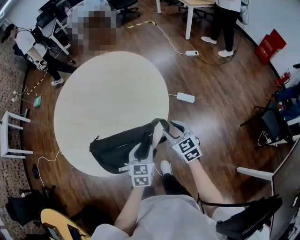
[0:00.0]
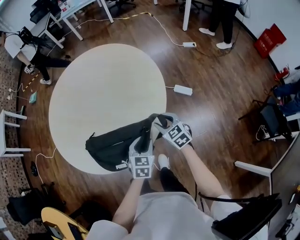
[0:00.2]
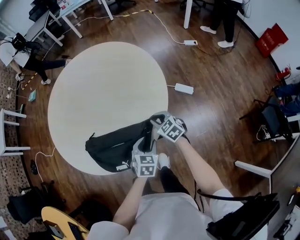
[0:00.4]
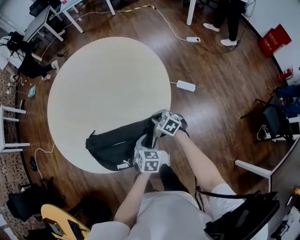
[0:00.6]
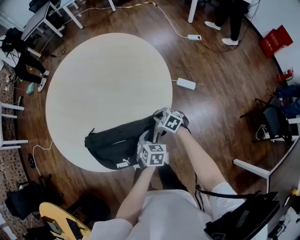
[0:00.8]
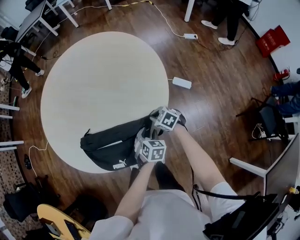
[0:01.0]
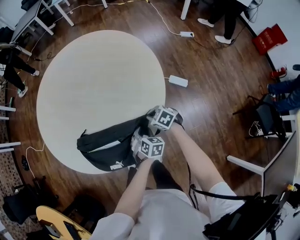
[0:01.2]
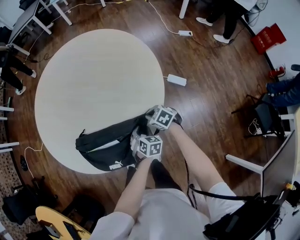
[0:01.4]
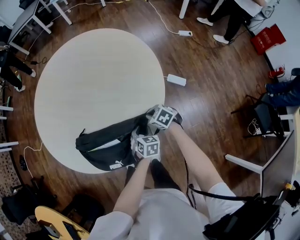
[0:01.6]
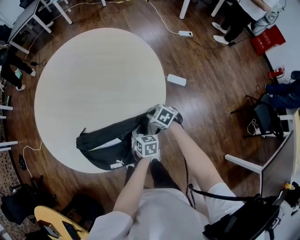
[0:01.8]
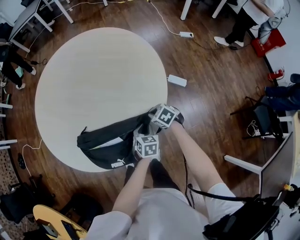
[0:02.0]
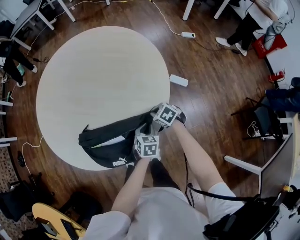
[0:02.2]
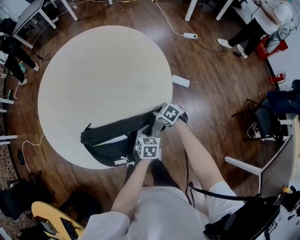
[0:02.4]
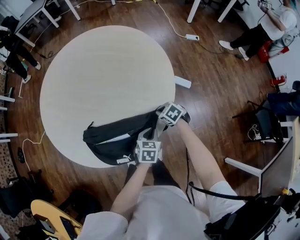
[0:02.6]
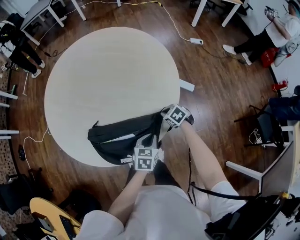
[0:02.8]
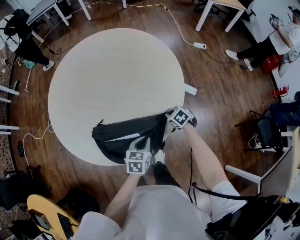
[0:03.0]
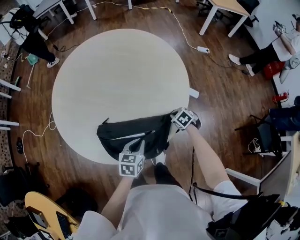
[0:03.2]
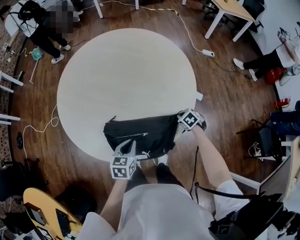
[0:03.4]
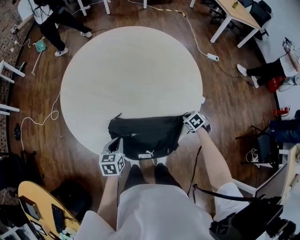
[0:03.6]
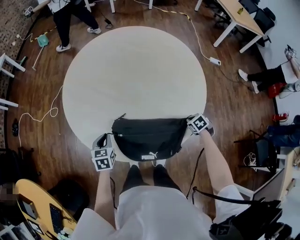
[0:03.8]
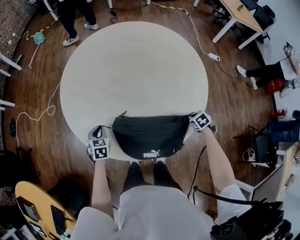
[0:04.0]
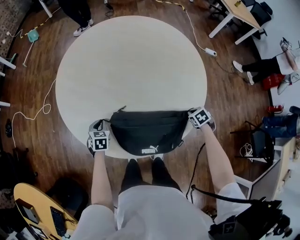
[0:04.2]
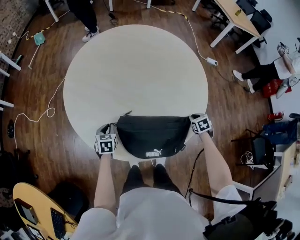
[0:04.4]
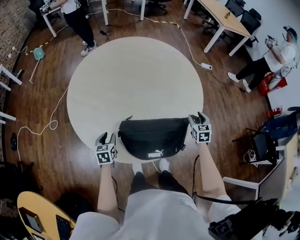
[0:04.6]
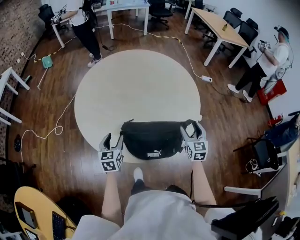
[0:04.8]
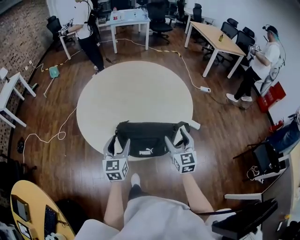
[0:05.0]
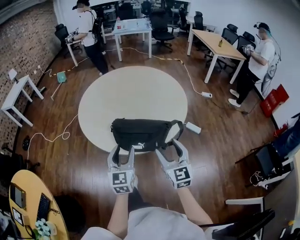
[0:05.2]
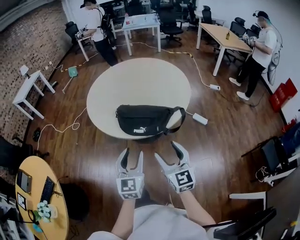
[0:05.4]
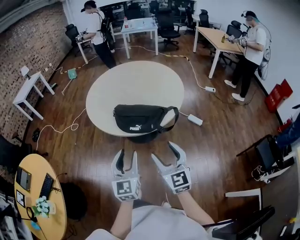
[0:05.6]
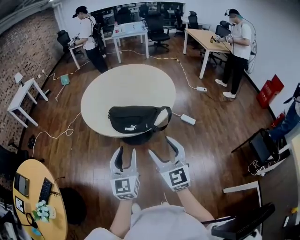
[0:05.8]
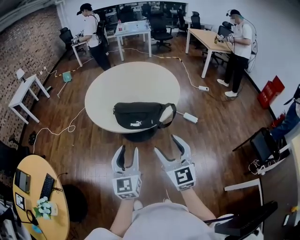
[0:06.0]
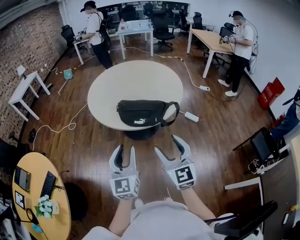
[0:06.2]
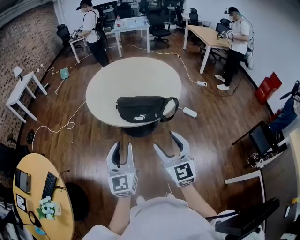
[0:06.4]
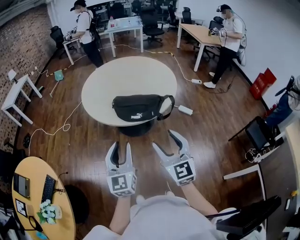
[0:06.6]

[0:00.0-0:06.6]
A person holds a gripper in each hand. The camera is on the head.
0:00.0 to 0:01.6: Both grippers move downward, roughly 15 cm. The left gripper turns by some 20 degrees. The right gripper rotates approximately 40 degrees, and closes up.
0:01.6 to 0:03.2: The left gripper travels to the left and upward by about 20 cm, rotates about 20 degrees, and closes its fingers.
0:03.2 to 0:05.0: The right gripper is displaced upward by some 30 cm, tilts its fingers about 60 degrees upward, and opens. Meanwhile the left gripper changes place by some 25 cm, swivels roughly 40 degrees, and opens.
0:05.0 to 0:06.6: Both grippers travel together backward, roughly 35 cm. The left gripper closes its fingers.

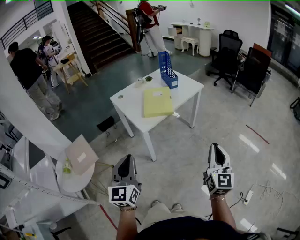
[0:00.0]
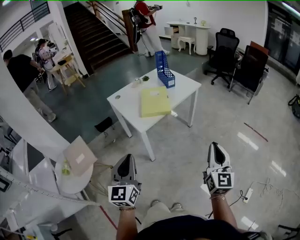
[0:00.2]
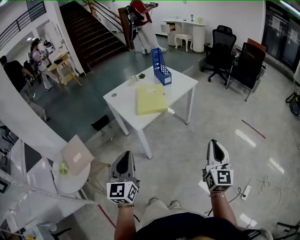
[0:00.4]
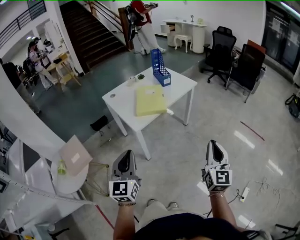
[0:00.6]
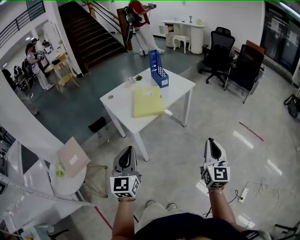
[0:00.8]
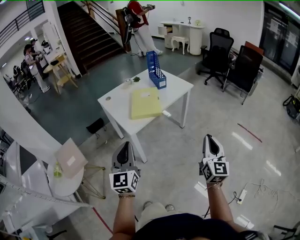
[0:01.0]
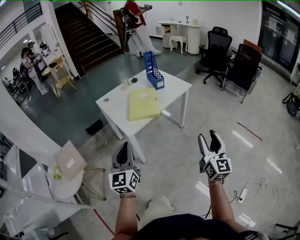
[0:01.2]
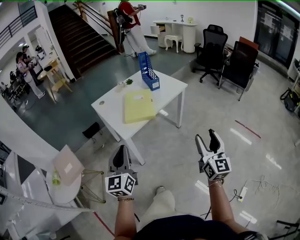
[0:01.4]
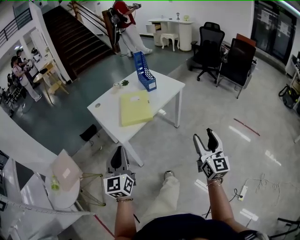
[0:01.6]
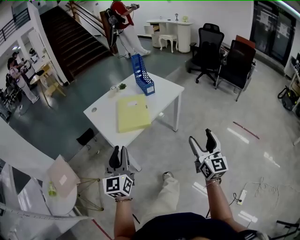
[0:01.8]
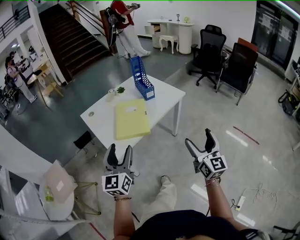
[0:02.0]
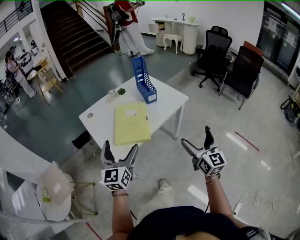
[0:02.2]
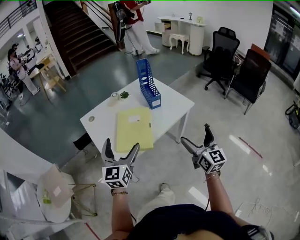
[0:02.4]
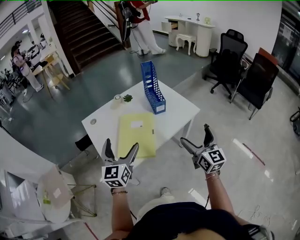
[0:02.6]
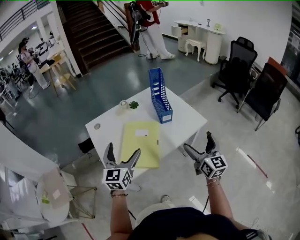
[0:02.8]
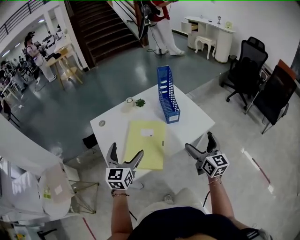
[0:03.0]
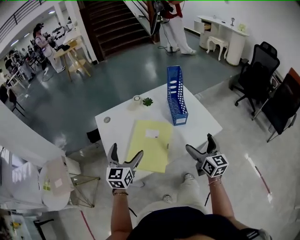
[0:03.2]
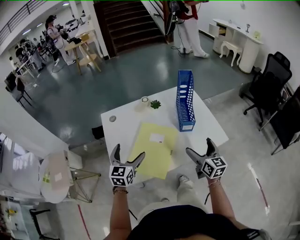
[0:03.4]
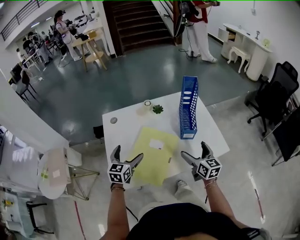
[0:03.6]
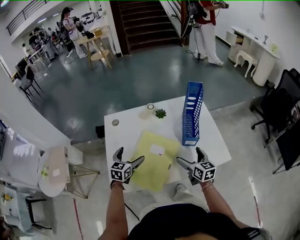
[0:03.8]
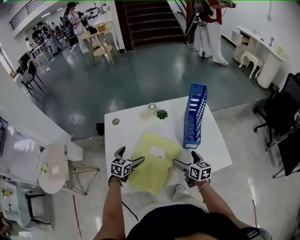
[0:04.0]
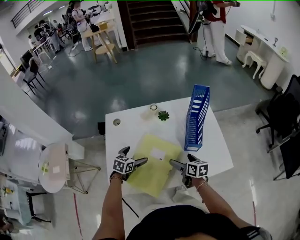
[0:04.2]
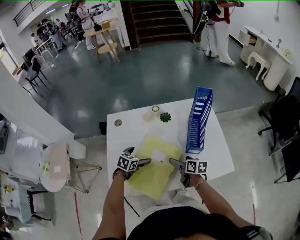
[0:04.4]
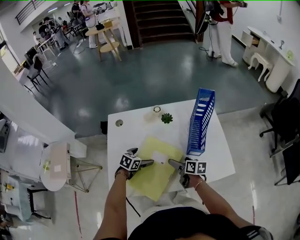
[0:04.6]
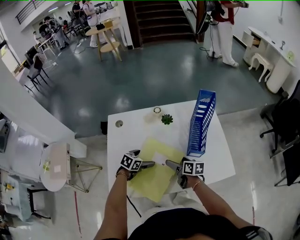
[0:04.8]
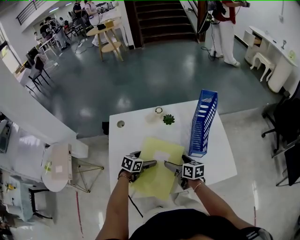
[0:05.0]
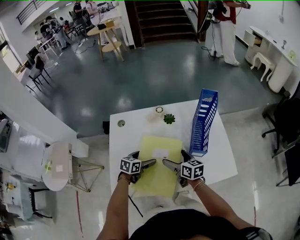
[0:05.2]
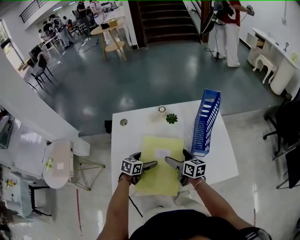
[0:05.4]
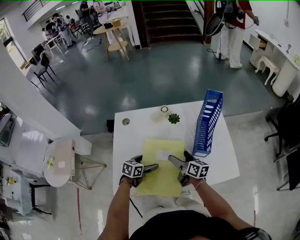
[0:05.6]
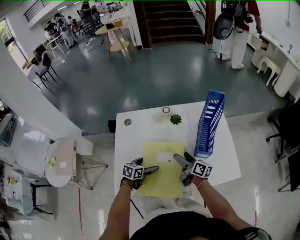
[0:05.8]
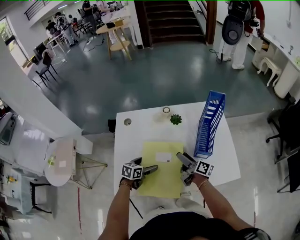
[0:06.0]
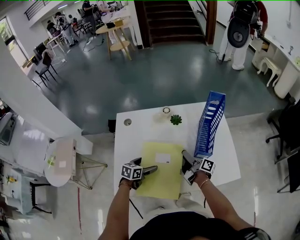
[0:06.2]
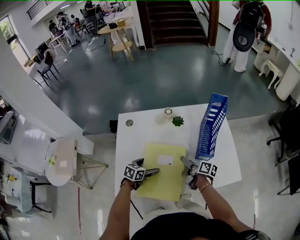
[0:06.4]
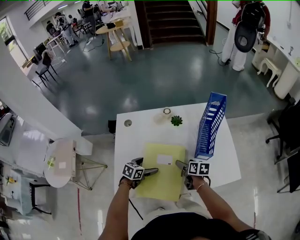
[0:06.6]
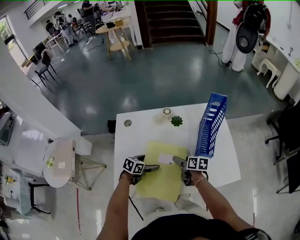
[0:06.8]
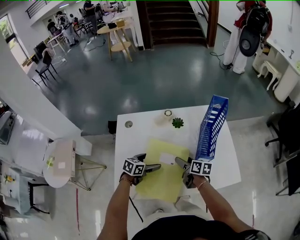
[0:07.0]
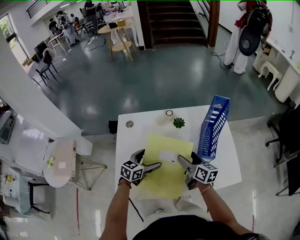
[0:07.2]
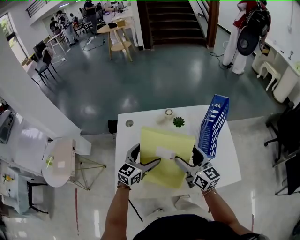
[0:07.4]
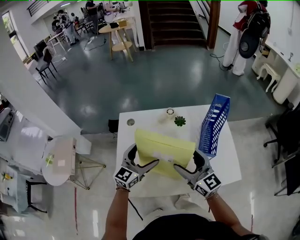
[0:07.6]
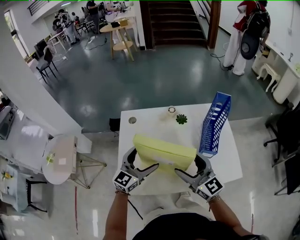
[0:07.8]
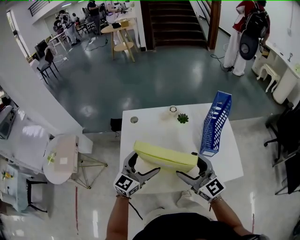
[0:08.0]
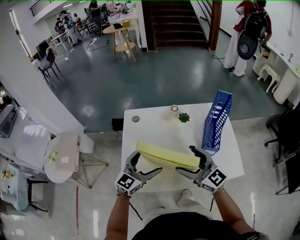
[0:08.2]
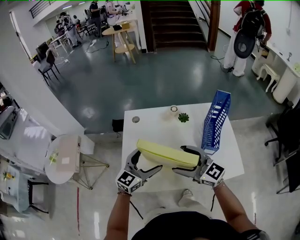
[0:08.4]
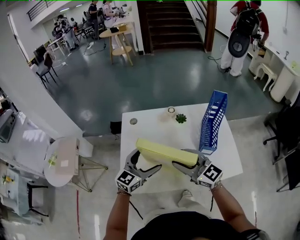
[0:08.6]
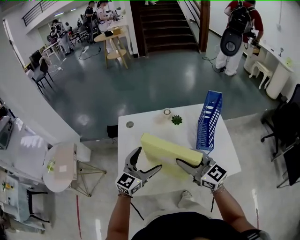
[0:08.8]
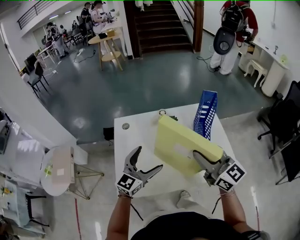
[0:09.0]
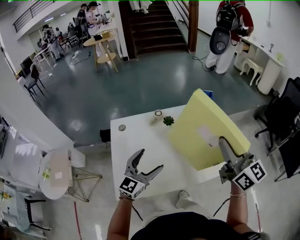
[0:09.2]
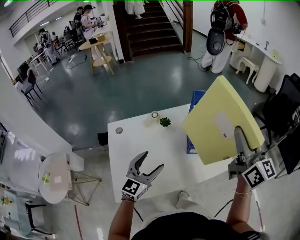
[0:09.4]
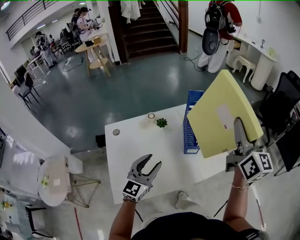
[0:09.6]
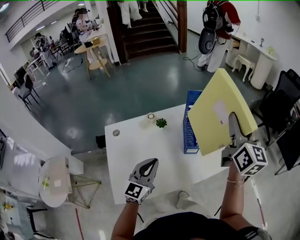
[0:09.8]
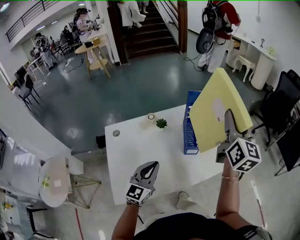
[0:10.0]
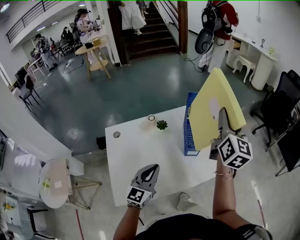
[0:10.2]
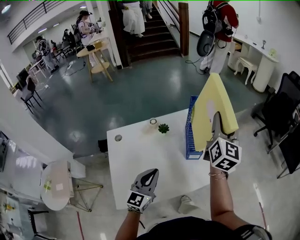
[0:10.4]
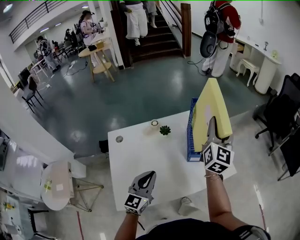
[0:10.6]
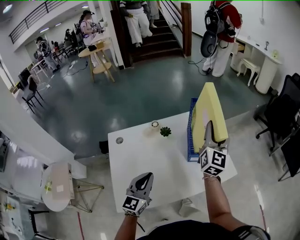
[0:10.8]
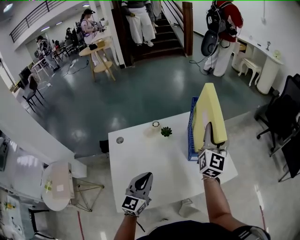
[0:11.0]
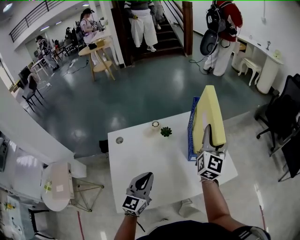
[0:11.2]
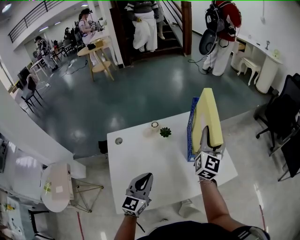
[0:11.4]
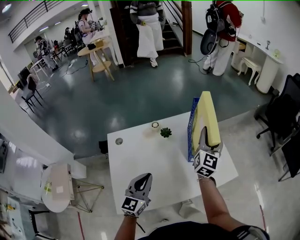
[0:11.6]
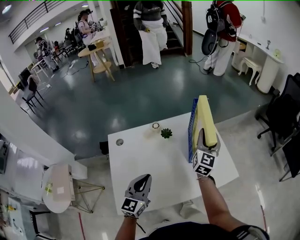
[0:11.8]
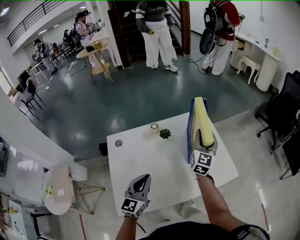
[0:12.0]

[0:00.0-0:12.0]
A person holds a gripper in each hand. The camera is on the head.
0:00.0 to 0:01.6: Both grippers move forward and to the right, roughly 15 cm. The right gripper opens its fingers.
0:01.6 to 0:03.0: The grippers both shift forward by about 40 cm. The right gripper turns by about 30 degrees, and opens its fingers, while the left gripper opens its fingers.
0:03.0 to 0:04.4: The left gripper moves downward and forward, about 30 cm, and angles its fingers downward, by approximately 40 degrees. The right gripper travels downward, forward and to the left by roughly 35 cm, and tips its fingers downward by some 30 degrees.
0:04.4 to 0:06.0: The right gripper is displaced upward by about 5 cm, and points its fingers about 30 degrees further upward.
0:06.0 to 0:07.6: Both grippers travel together upward, roughly 20 cm. The right gripper twists approximately 60 degrees counterclockwise, seen from behind. Meanwhile the left gripper points its fingers about 40 degrees further upward.
0:07.6 to 0:09.0: The left gripper is displaced backward by about 5 cm, while the right gripper moves upward and to the right, approximately 10 cm, and closes.
0:09.0 to 0:10.4: The right gripper shifts by approximately 20 cm, and turns by roughly 60 degrees. The left gripper ends up some 5 cm from where it was, and closes its fingers.
0:10.4 to 0:12.0: The left gripper shifts about 5 cm to the left. Meanwhile the right gripper is displaced downward and to the left by some 15 cm.

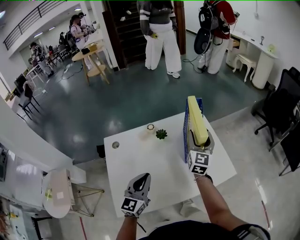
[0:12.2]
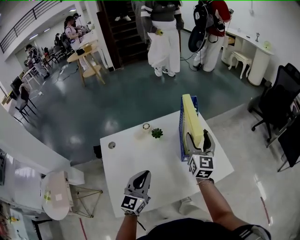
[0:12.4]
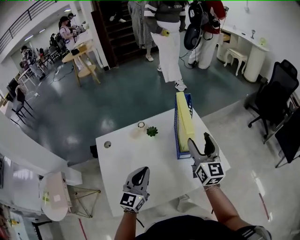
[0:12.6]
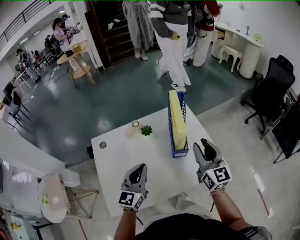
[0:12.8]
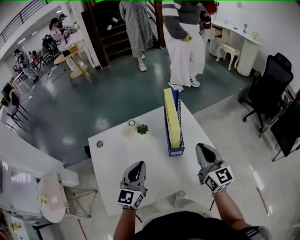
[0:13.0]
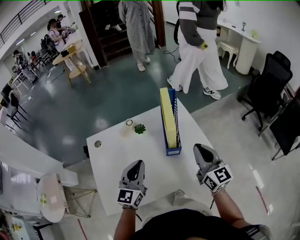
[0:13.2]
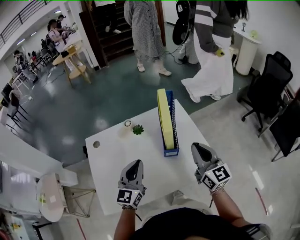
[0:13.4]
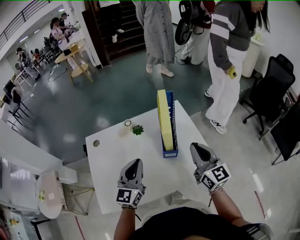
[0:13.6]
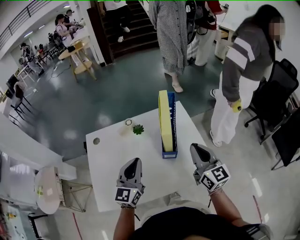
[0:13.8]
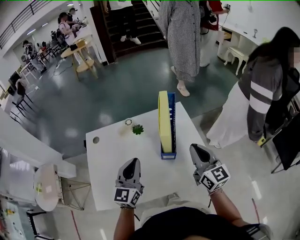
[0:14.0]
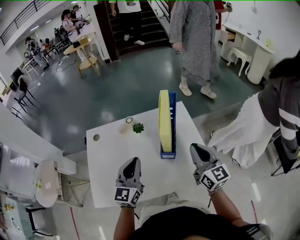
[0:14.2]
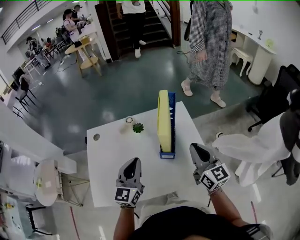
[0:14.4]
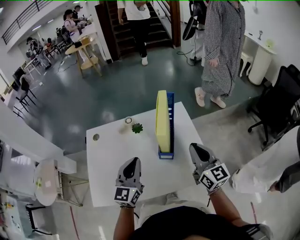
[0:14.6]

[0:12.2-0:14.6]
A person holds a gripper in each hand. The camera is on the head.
0:12.2 to 0:13.4: The left gripper heads to the right, covering roughly 10 cm. The right gripper goes roughly 15 cm backward and to the right, swivels some 30 degrees, and closes up.
0:13.4 to 0:14.6: The right gripper changes place by some 5 cm.

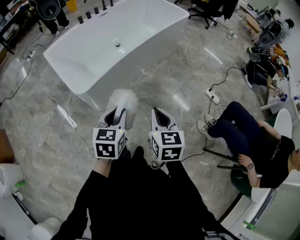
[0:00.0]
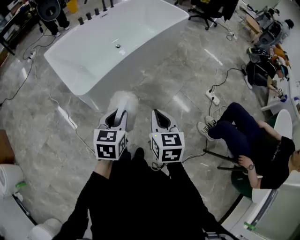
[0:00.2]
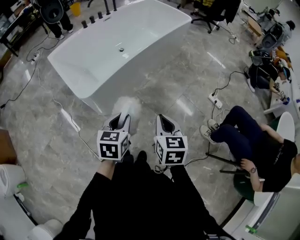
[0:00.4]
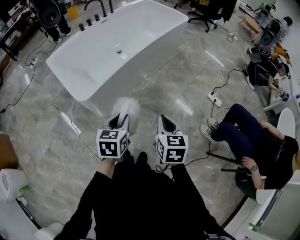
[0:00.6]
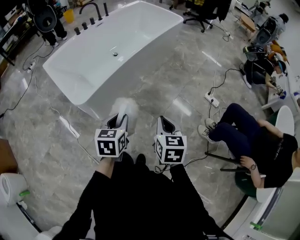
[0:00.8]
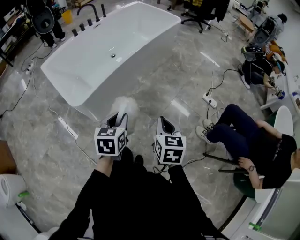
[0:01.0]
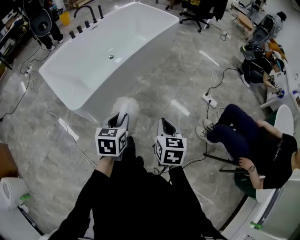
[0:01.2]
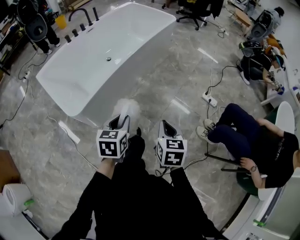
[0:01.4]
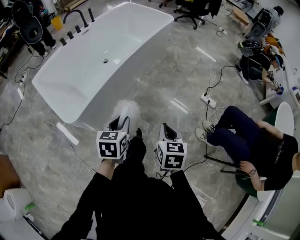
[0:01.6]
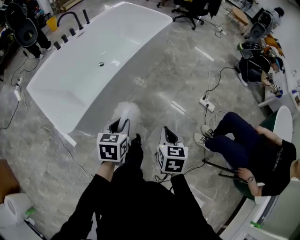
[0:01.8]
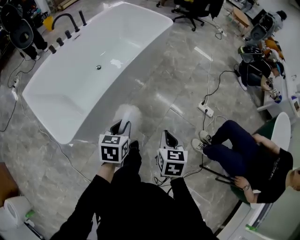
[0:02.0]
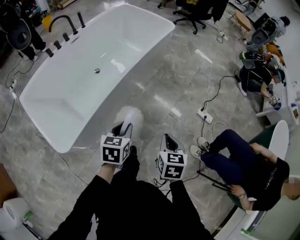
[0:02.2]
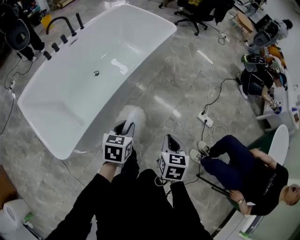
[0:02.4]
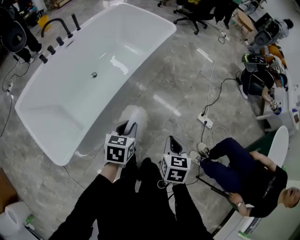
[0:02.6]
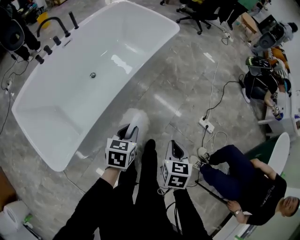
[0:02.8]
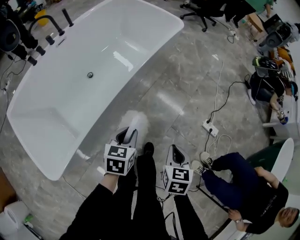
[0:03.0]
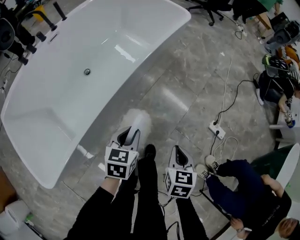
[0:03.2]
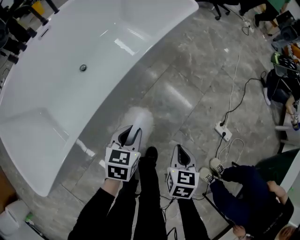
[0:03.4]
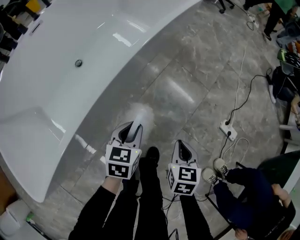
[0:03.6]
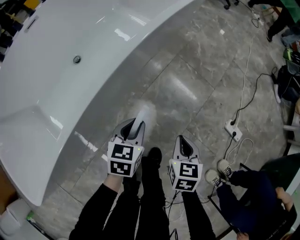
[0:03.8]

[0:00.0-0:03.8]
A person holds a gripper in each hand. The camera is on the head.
0:00.0 to 0:01.2: The right gripper heads to the right, covering roughly 10 cm; the left gripper shifts by approximately 5 cm.
0:01.2 to 0:02.6: The grippers both shift forward by roughly 30 cm.
0:02.6 to 0:03.8: Both grippers move downward and forward, some 40 cm.
